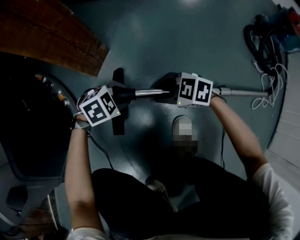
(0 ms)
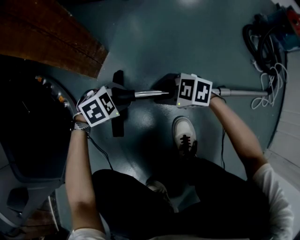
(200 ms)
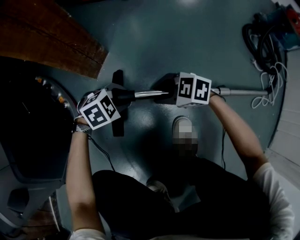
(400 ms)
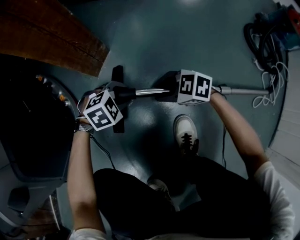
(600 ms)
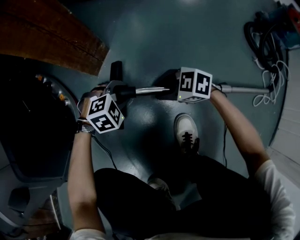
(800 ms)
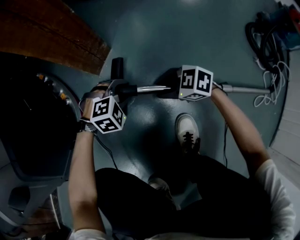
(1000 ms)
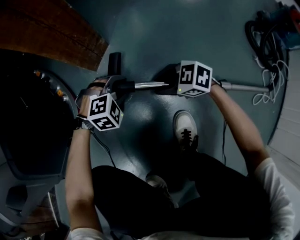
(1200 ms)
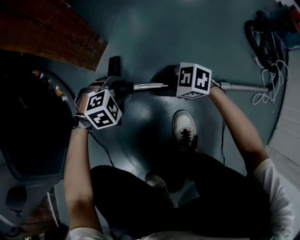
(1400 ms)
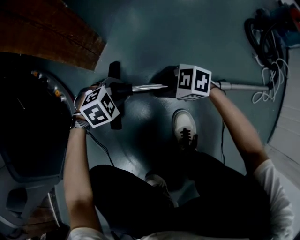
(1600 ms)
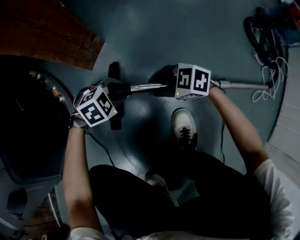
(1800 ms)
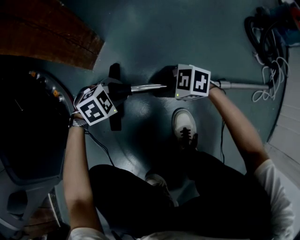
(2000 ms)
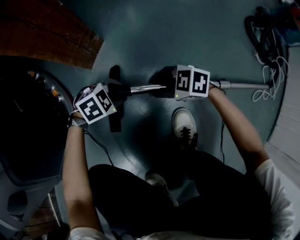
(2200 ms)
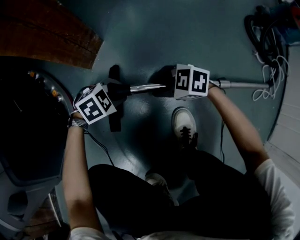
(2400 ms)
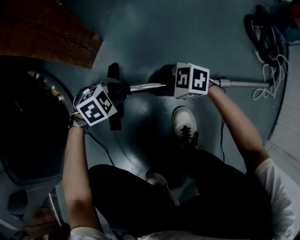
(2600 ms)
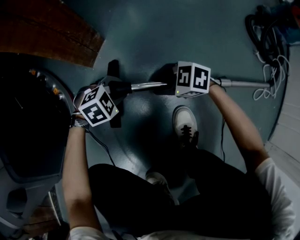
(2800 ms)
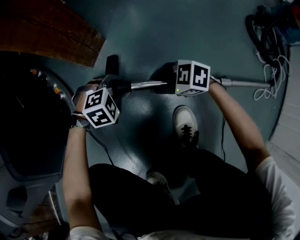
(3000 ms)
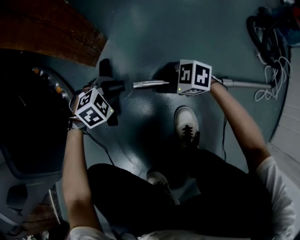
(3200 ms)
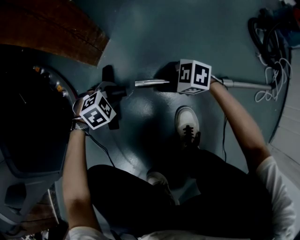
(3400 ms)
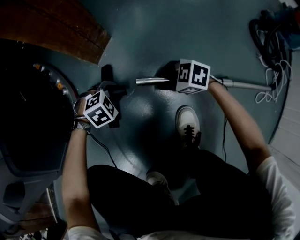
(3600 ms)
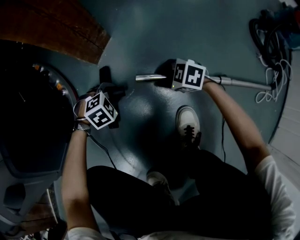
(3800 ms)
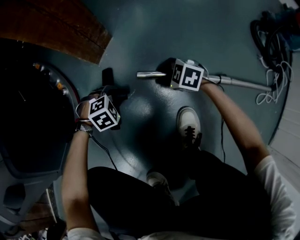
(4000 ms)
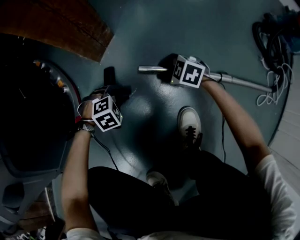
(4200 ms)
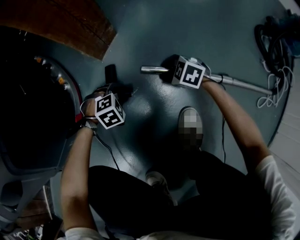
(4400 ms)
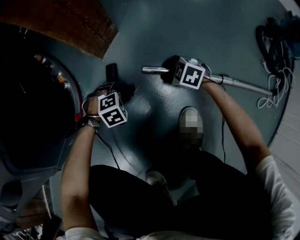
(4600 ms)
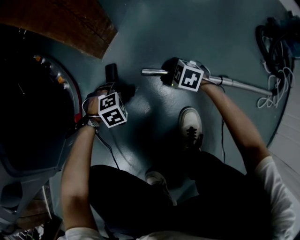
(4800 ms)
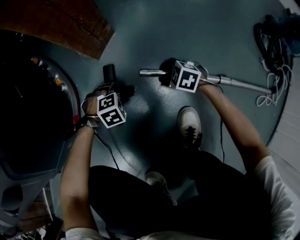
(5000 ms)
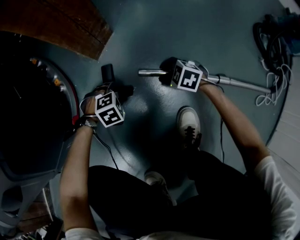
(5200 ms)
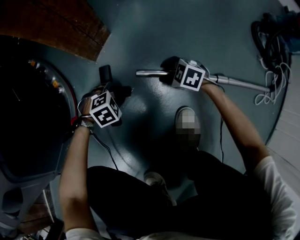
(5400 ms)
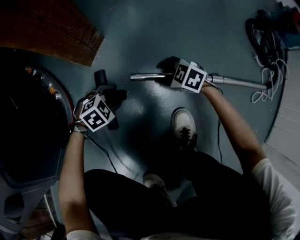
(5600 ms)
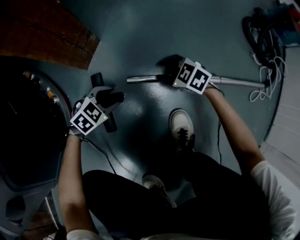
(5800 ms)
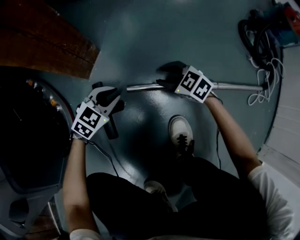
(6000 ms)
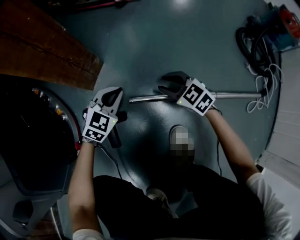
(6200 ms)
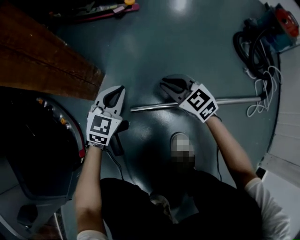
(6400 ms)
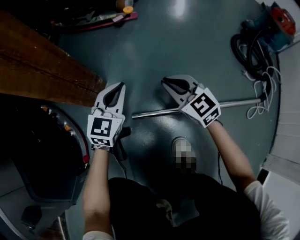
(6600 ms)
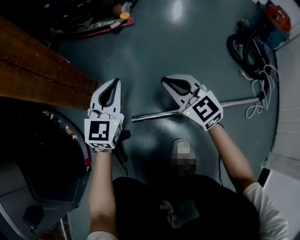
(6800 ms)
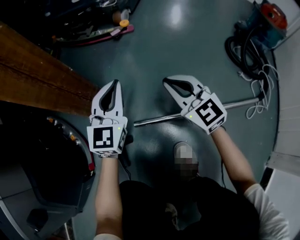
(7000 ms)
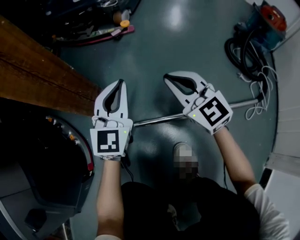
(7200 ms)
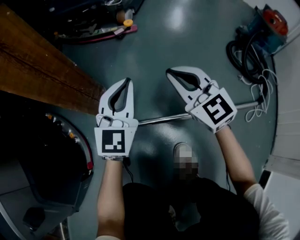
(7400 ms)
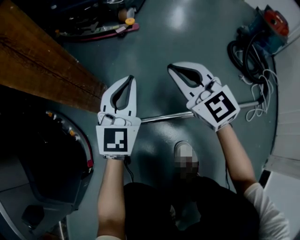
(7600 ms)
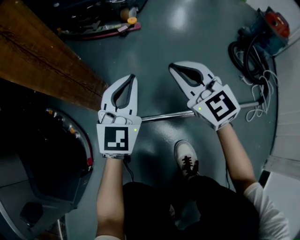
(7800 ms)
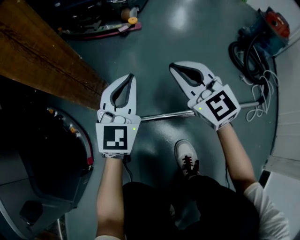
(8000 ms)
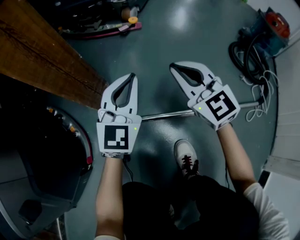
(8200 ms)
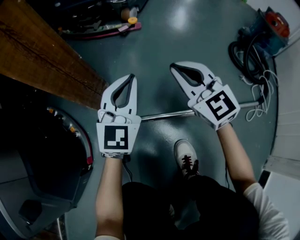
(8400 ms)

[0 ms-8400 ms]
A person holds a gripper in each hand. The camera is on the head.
2800 ms to 4200 ms: The left gripper shifts by about 10 cm, while the right gripper changes place by roughly 10 cm.
4200 ms to 5600 ms: The grippers move only a little.
5600 ms to 7000 ms: The two grippers go roughly 30 cm upward. The left gripper tilts its fingers about 60 degrees upward, and closes up. Meanwhile the right gripper tilts its fingers roughly 40 degrees upward, and closes its fingers.
7000 ms to 8400 ms: The right gripper is displaced upward by approximately 5 cm.

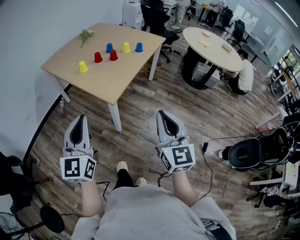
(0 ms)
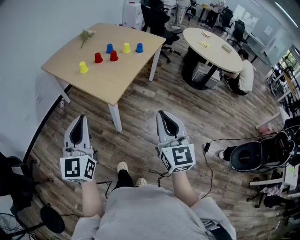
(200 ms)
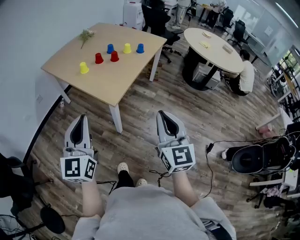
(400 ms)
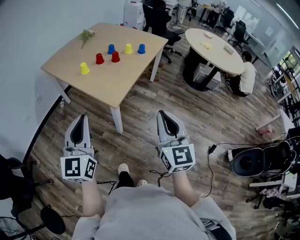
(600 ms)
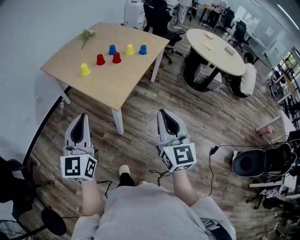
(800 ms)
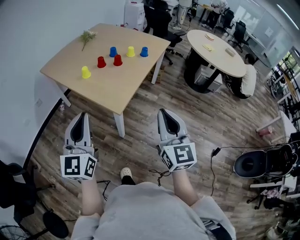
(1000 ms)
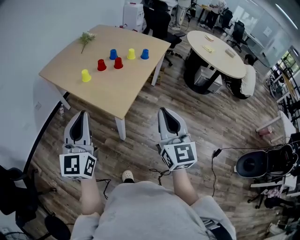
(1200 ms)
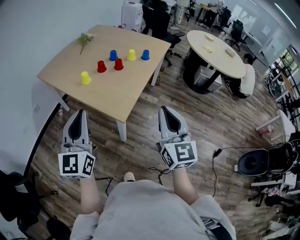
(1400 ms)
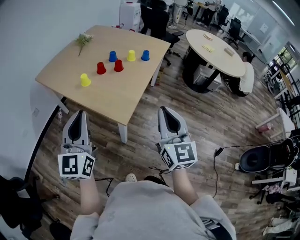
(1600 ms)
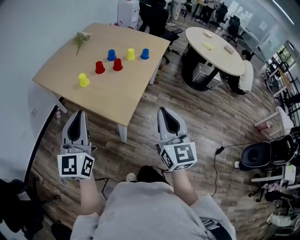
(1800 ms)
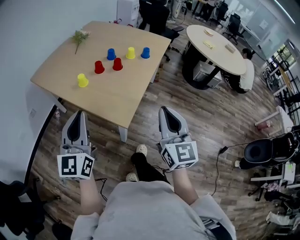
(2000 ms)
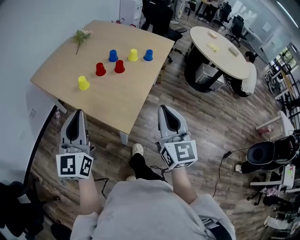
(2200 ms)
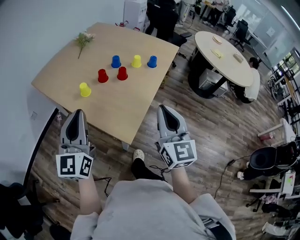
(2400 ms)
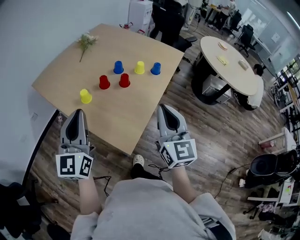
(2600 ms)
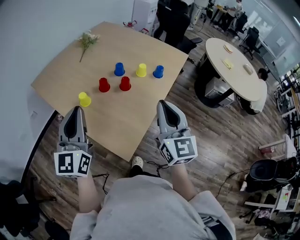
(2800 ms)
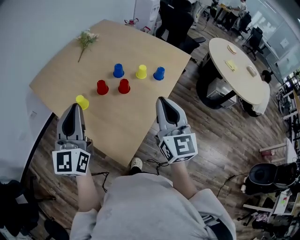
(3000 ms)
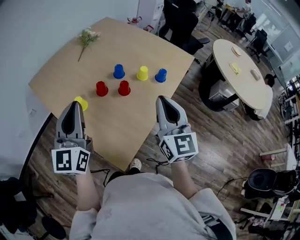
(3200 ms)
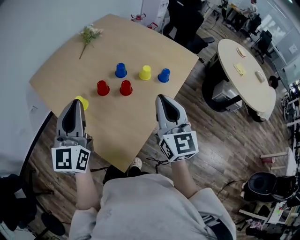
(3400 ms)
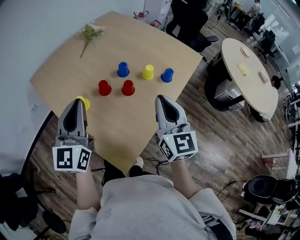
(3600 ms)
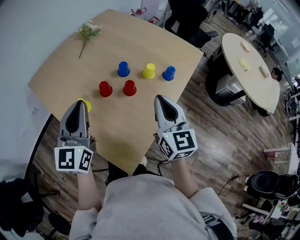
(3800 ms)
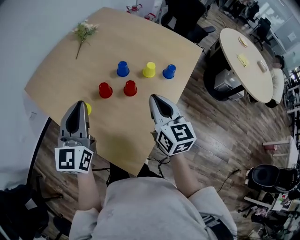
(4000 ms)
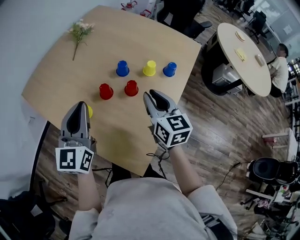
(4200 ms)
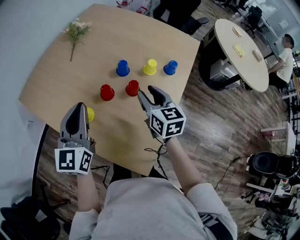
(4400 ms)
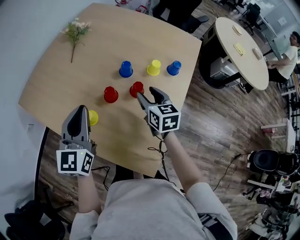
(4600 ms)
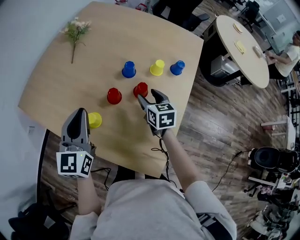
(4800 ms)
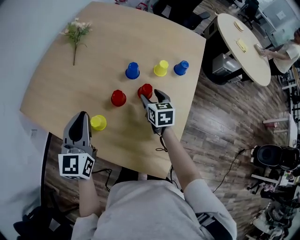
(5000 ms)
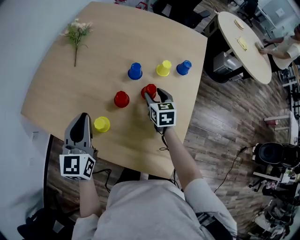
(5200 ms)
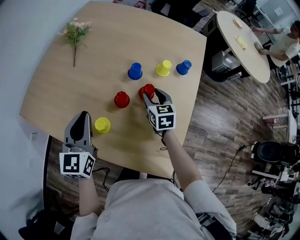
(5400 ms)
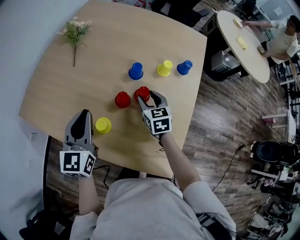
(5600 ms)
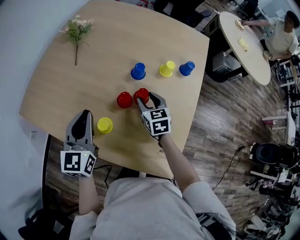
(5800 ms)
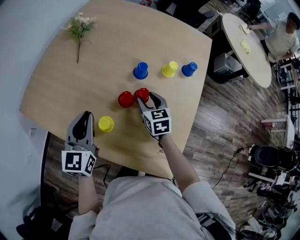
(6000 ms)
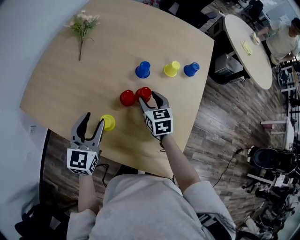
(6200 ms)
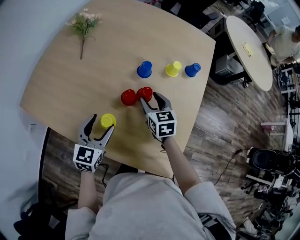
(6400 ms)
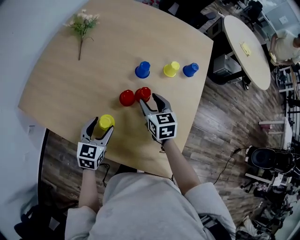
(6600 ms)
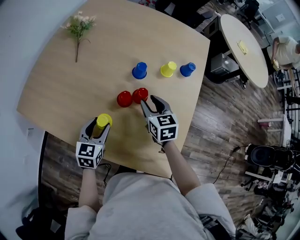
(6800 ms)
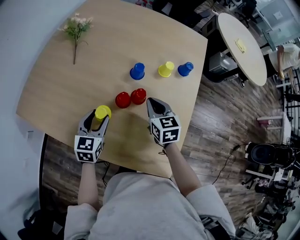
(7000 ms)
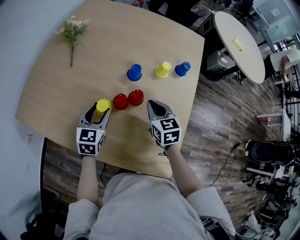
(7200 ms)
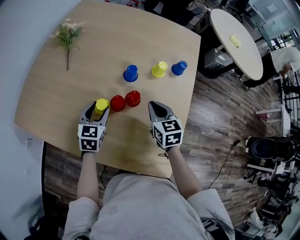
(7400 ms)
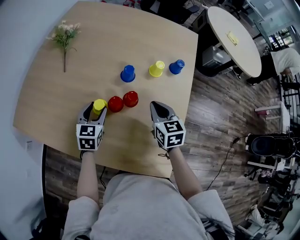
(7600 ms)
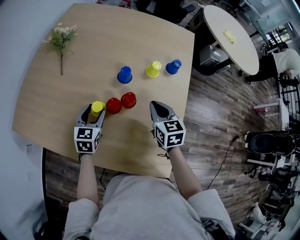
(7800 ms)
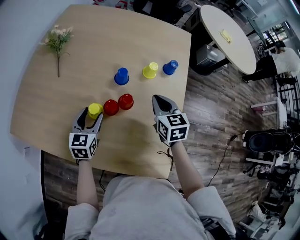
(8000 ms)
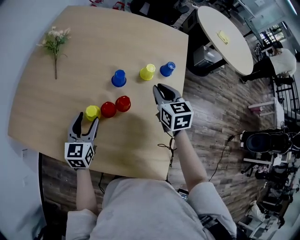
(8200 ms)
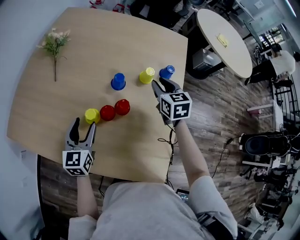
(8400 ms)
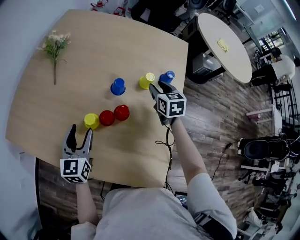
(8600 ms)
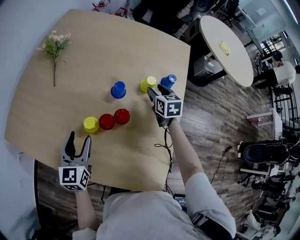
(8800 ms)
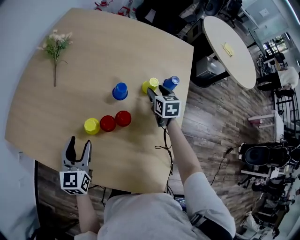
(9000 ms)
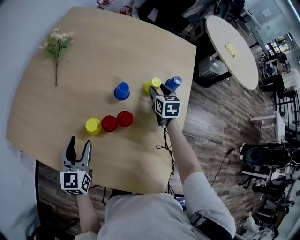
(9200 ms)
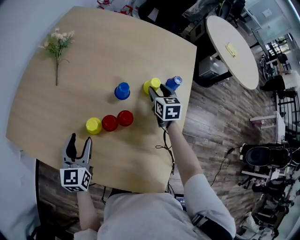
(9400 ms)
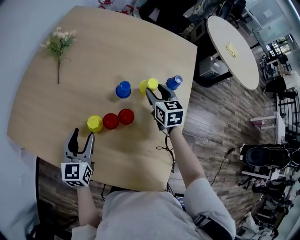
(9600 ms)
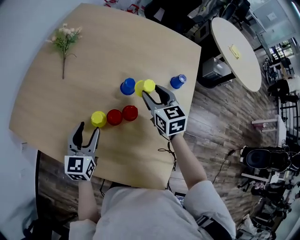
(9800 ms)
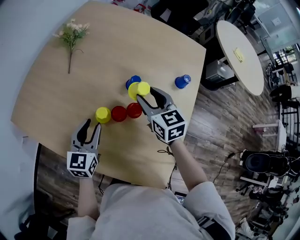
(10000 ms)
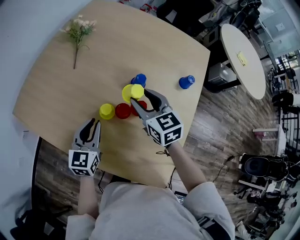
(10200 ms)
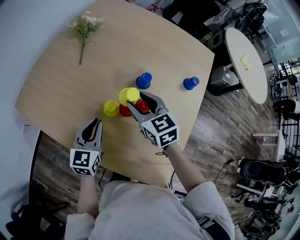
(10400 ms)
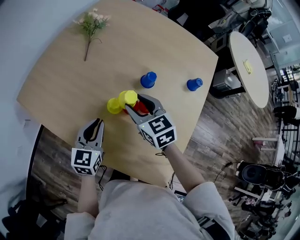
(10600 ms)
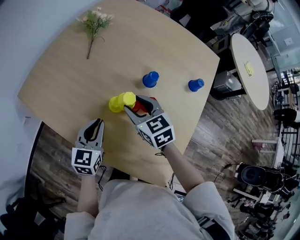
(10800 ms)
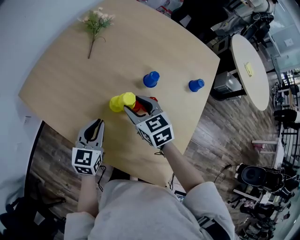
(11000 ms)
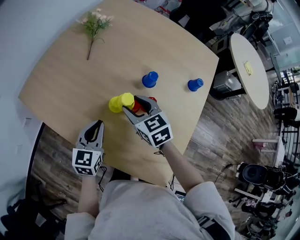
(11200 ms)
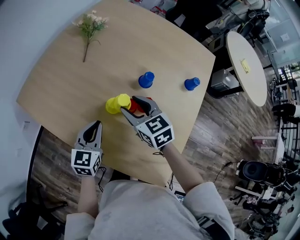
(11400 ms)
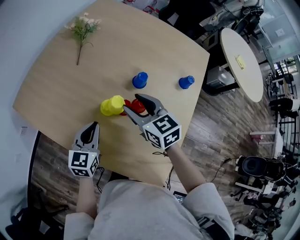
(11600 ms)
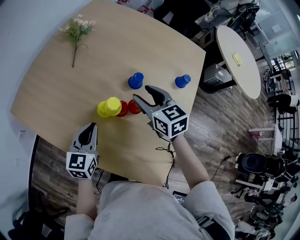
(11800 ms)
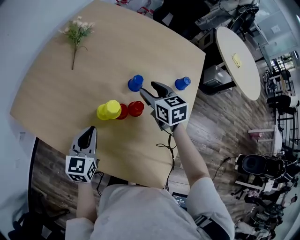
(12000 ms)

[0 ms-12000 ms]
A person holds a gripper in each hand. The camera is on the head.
0 ms to 1600 ms: Both grippers move forward and to the left, some 20 cm.
1600 ms to 3000 ms: The two grippers go some 30 cm forward.
3000 ms to 4400 ms: The left gripper moves forward and downward, approximately 15 cm, while the right gripper is displaced forward, downward and to the left by approximately 25 cm, changes its angle by some 30 degrees, and opens up.
4400 ms to 6000 ms: The right gripper is displaced downward and to the left by approximately 15 cm, while the left gripper goes approximately 15 cm to the left, downward and forward.
6000 ms to 7600 ms: The left gripper travels downward and forward by some 15 cm, turns by roughly 20 degrees, and opens, while the right gripper moves to the right, some 5 cm, and closes its fingers.
7600 ms to 9000 ms: The right gripper is displaced forward by about 20 cm, and opens its fingers. Meanwhile the left gripper is displaced upward and backward by roughly 10 cm.
9000 ms to 10400 ms: The right gripper heads to the left, backward and upward, covering some 30 cm, and turns by approximately 30 degrees; the left gripper closes its fingers.
10400 ms to 12000 ms: The right gripper heads to the right, covering some 10 cm.

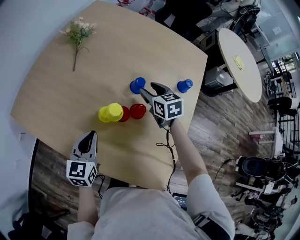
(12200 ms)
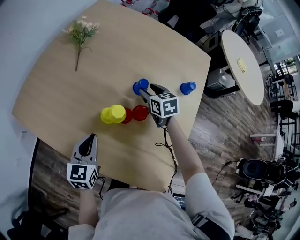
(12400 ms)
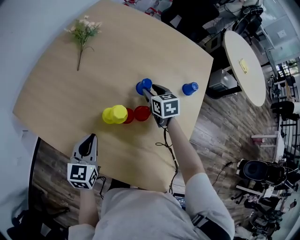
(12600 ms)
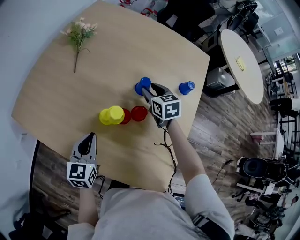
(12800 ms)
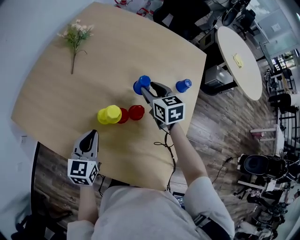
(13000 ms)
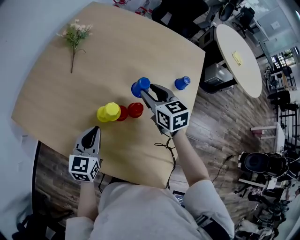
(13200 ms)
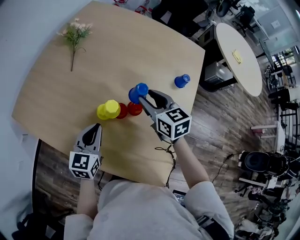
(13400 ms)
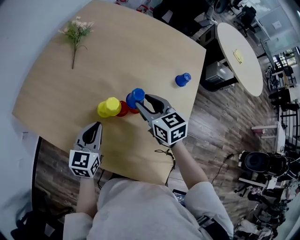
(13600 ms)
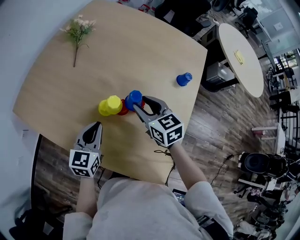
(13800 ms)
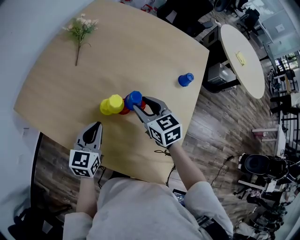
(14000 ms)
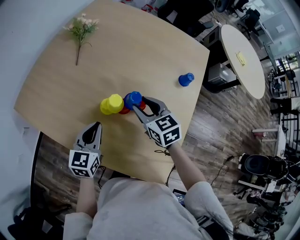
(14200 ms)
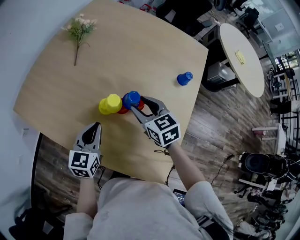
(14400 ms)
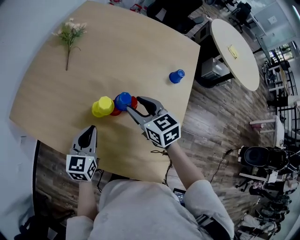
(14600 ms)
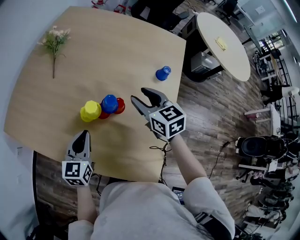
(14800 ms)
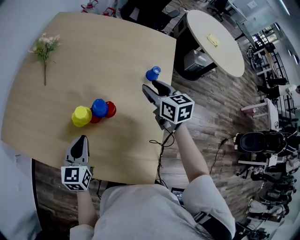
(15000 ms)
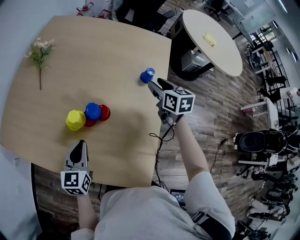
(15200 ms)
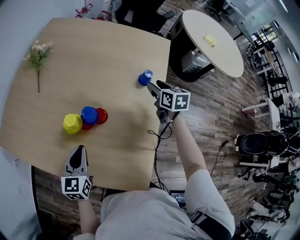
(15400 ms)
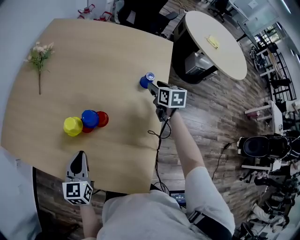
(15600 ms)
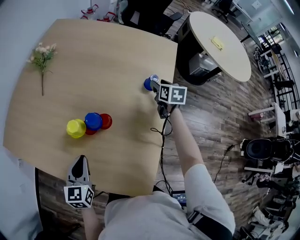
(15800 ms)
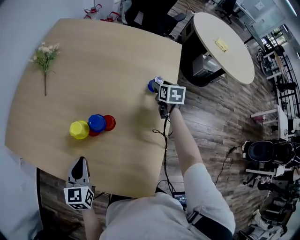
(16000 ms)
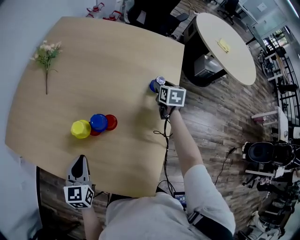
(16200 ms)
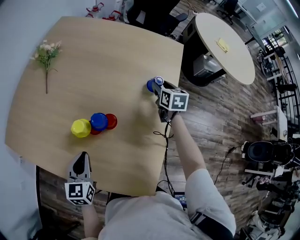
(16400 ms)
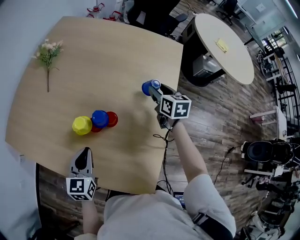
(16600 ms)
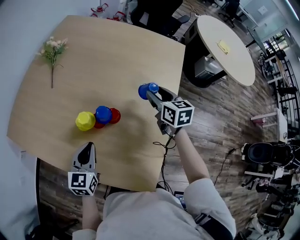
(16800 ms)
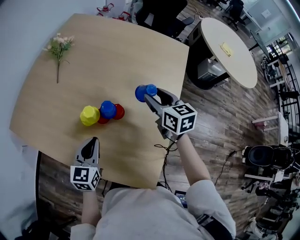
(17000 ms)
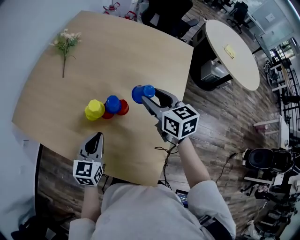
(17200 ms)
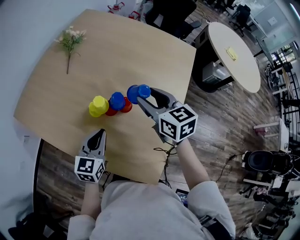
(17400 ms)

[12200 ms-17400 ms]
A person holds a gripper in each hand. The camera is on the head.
12200 ms to 14000 ms: The right gripper goes approximately 10 cm backward and to the left.
14000 ms to 15600 ms: The left gripper heads to the right, covering roughly 5 cm; the right gripper heads to the right, covering some 30 cm, and turns by about 30 degrees.
15600 ms to 17400 ms: The right gripper goes some 30 cm to the left, upward and backward, and rotates approximately 30 degrees.
